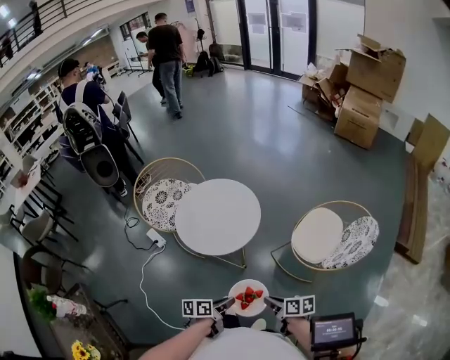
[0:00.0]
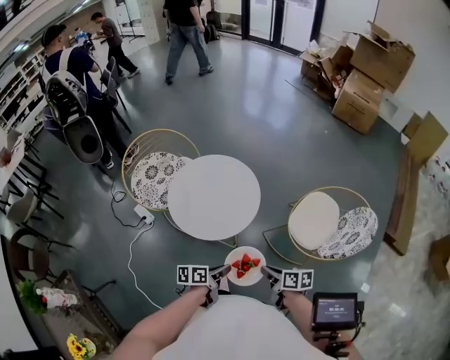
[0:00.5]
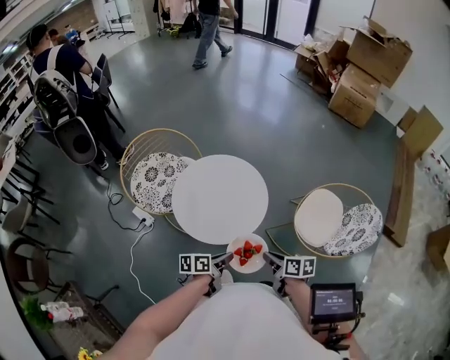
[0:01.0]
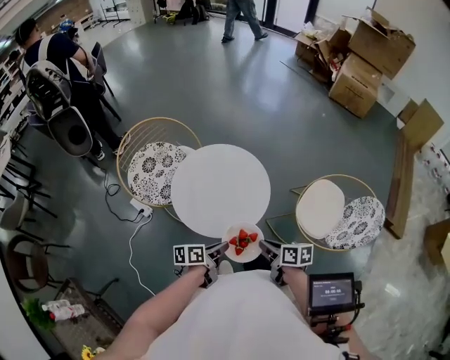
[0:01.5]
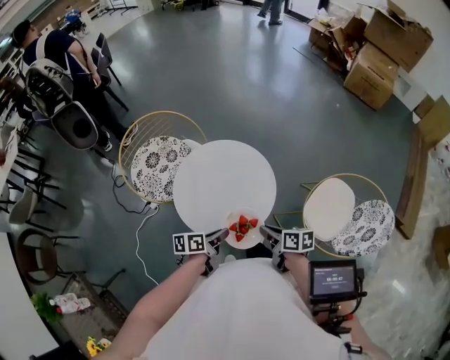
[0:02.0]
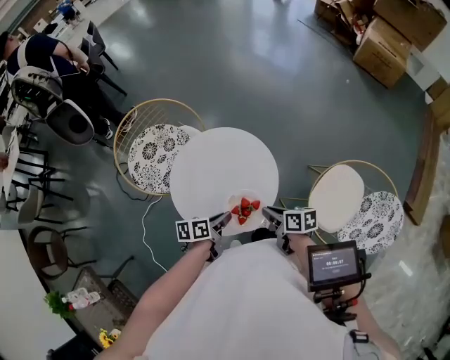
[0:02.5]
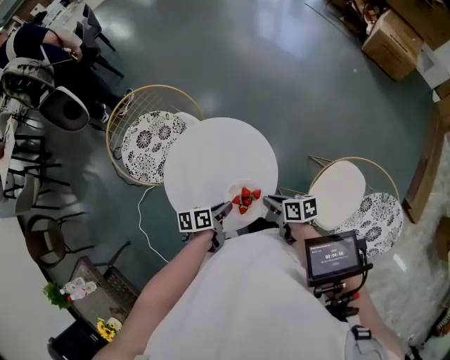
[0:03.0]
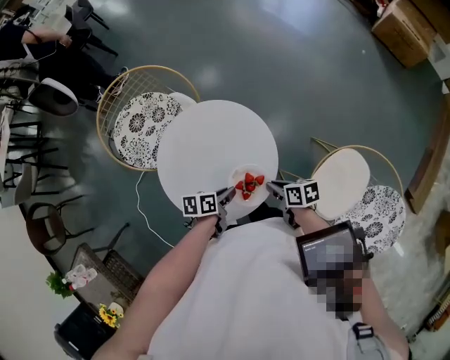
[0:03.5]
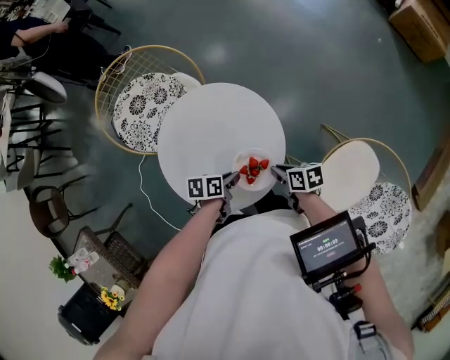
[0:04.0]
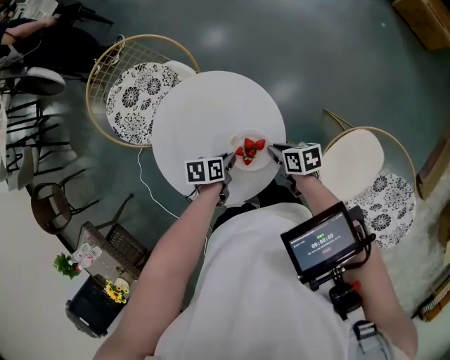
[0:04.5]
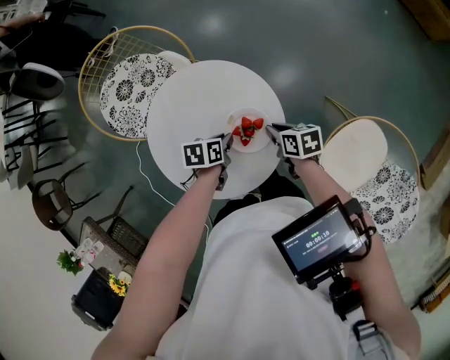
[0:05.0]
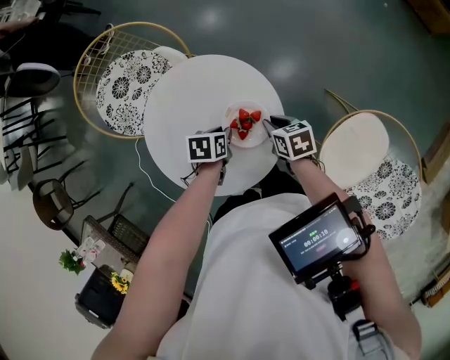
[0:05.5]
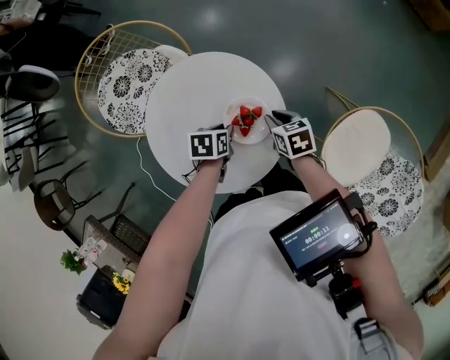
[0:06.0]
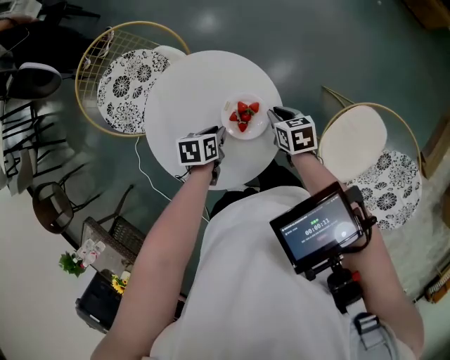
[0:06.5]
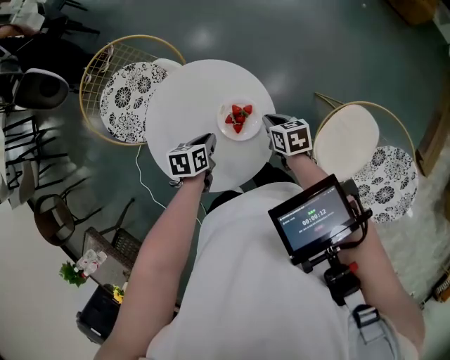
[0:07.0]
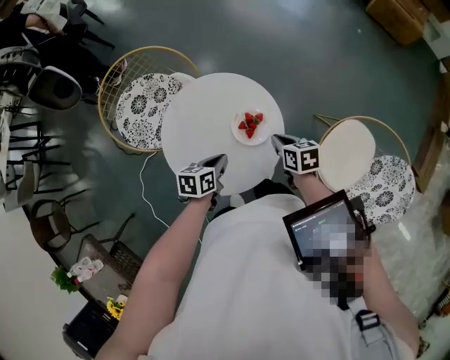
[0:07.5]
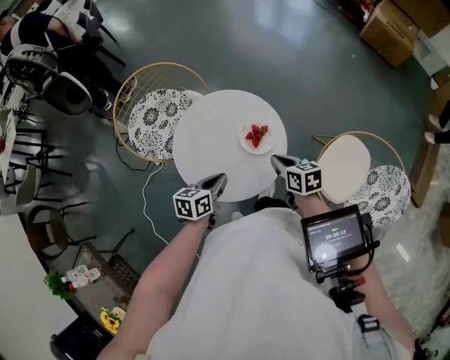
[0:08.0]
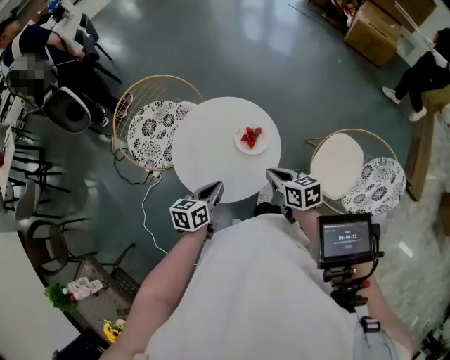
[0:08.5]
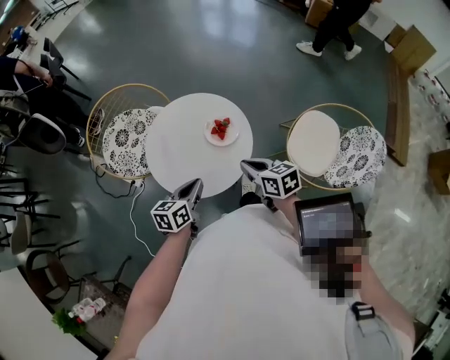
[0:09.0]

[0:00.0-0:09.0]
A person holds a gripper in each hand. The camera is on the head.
0:00.0 to 0:02.0: The grippers both shift forward and to the left by some 30 cm.
0:02.0 to 0:04.5: The right gripper changes place by roughly 25 cm, and changes its angle by approximately 20 degrees. Meanwhile the left gripper ends up approximately 25 cm from where it was, and swivels roughly 30 degrees.
0:04.5 to 0:07.0: The left gripper moves roughly 5 cm.
0:07.0 to 0:09.0: The two grippers go roughly 25 cm backward and upward. The left gripper turns by roughly 30 degrees.

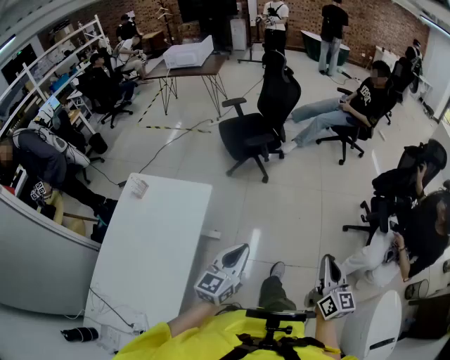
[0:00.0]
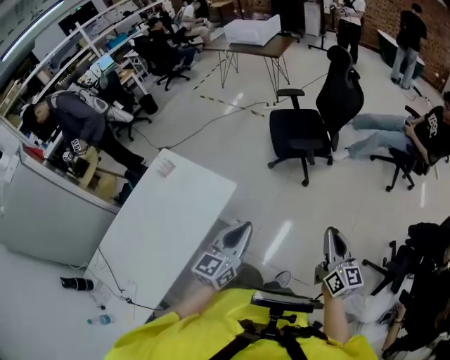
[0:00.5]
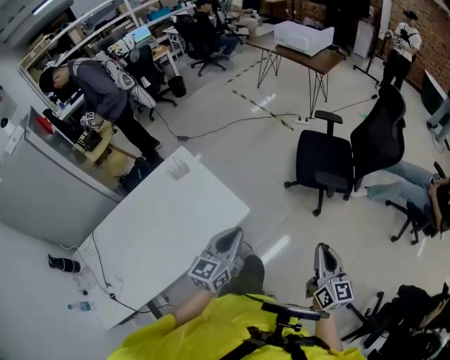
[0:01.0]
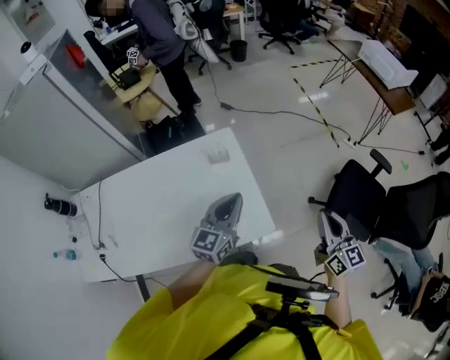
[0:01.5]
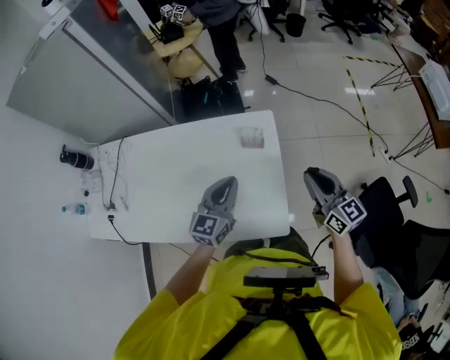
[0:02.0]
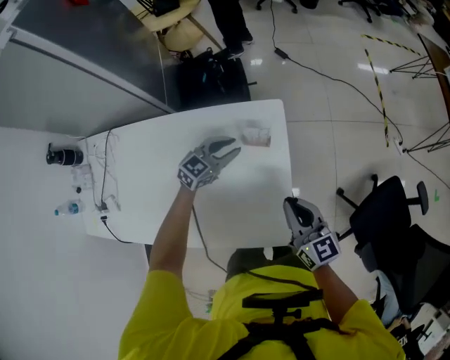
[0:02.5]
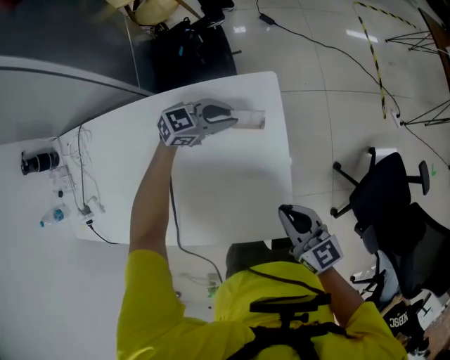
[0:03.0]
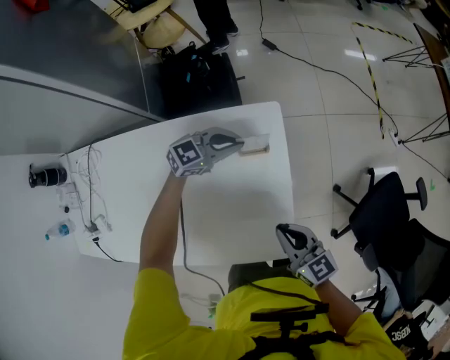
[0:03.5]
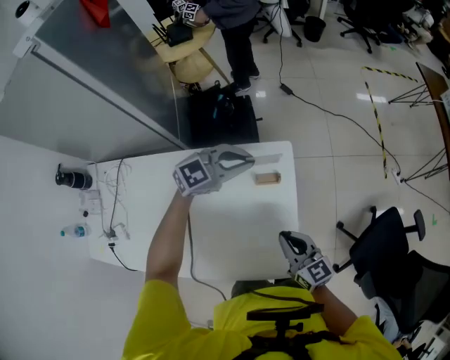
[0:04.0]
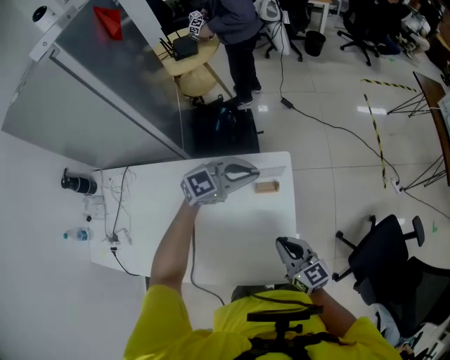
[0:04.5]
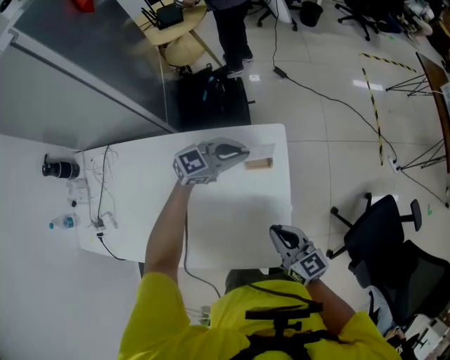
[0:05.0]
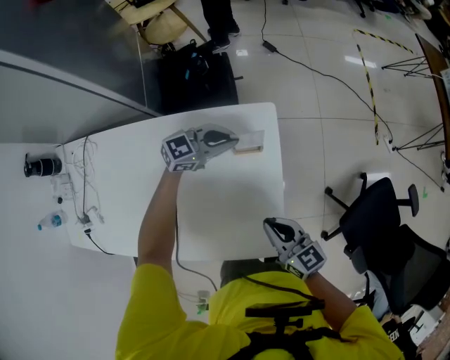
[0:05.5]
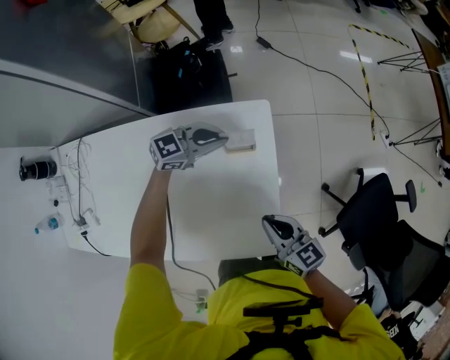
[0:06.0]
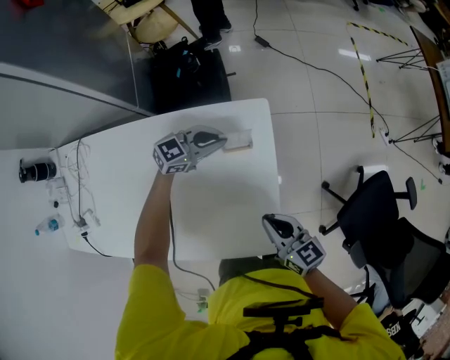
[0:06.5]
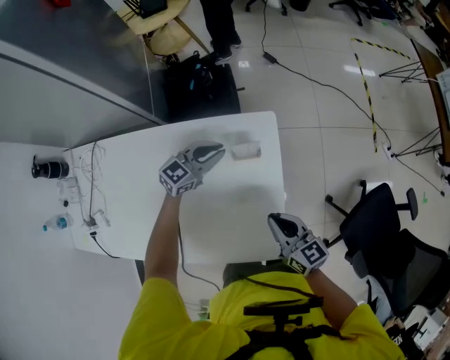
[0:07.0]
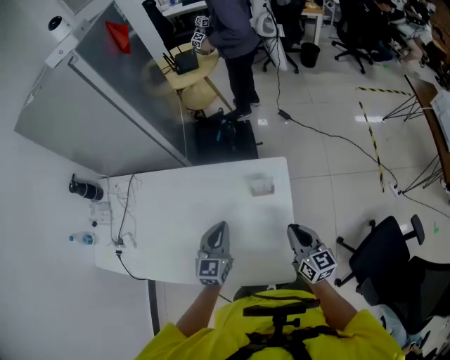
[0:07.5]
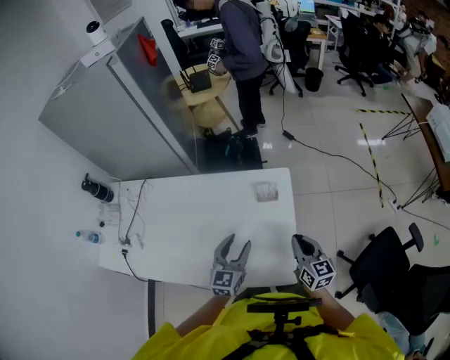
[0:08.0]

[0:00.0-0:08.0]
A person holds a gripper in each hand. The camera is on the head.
0:00.0 to 0:02.0: The pair of grippers is taken some 70 cm. The right gripper changes its angle by some 100 degrees. The left gripper rotates roughly 80 degrees.
0:02.0 to 0:04.0: The right gripper shifts by approximately 15 cm, while the left gripper goes downward and returns, about 20 cm each way, rotates some 50 degrees, and opens, then closes once more.
0:04.0 to 0:06.0: The left gripper moves downward, about 15 cm; the right gripper moves downward, roughly 5 cm.
0:06.0 to 0:08.0: The left gripper moves roughly 30 cm, rotates about 60 degrees, and opens up; the right gripper travels upward by roughly 10 cm, and changes its angle by some 20 degrees.

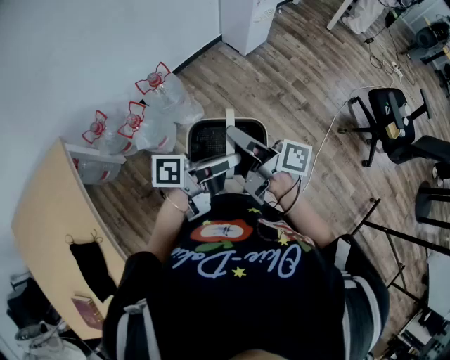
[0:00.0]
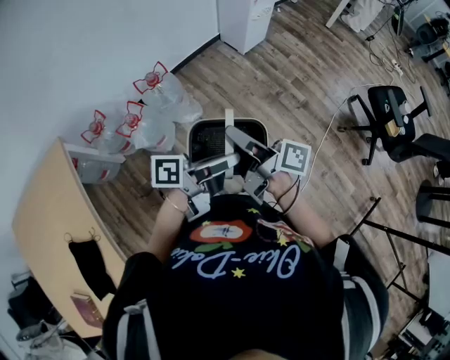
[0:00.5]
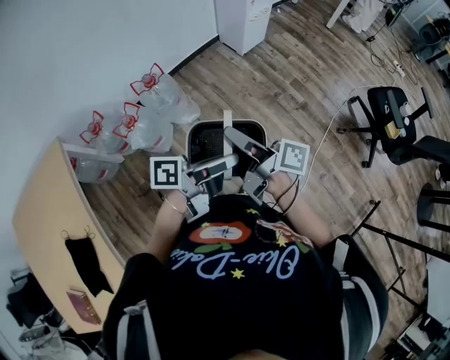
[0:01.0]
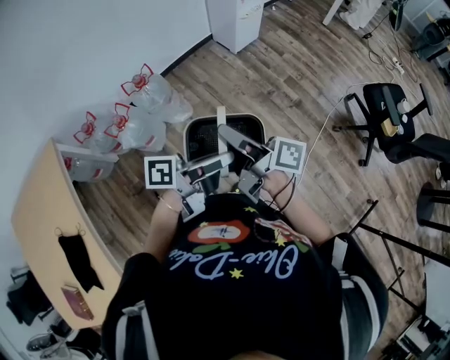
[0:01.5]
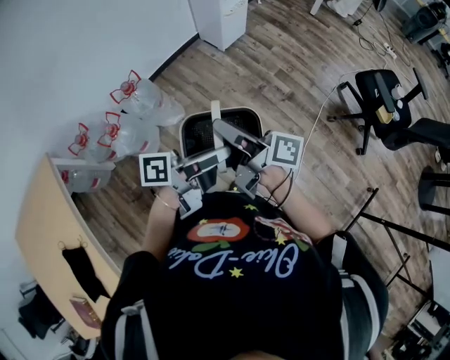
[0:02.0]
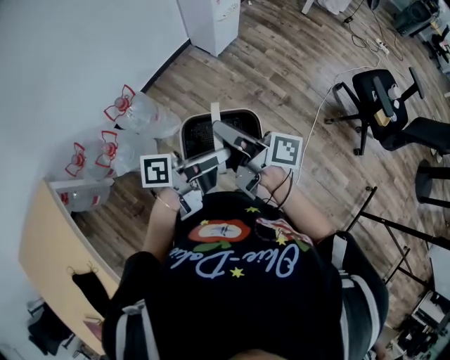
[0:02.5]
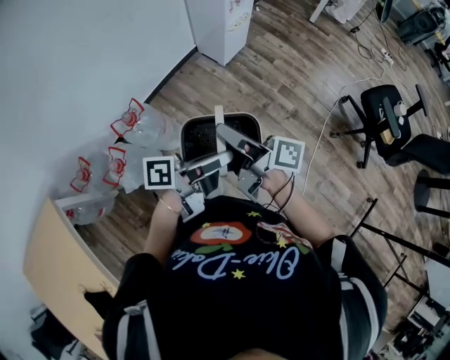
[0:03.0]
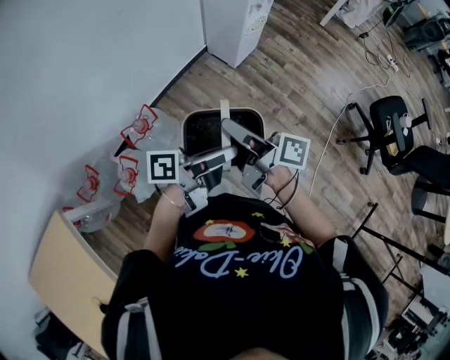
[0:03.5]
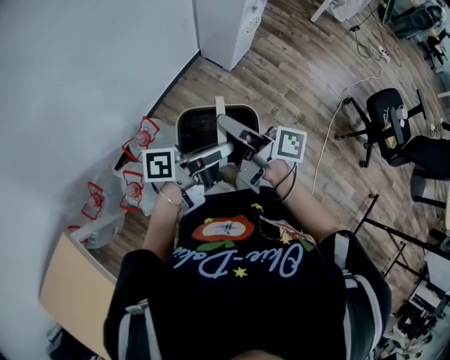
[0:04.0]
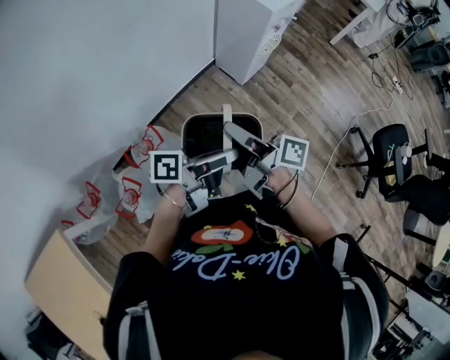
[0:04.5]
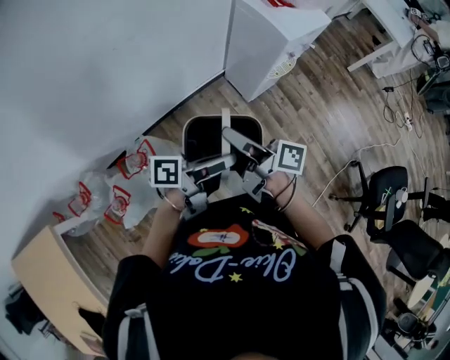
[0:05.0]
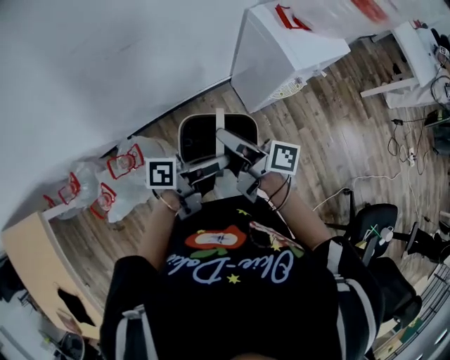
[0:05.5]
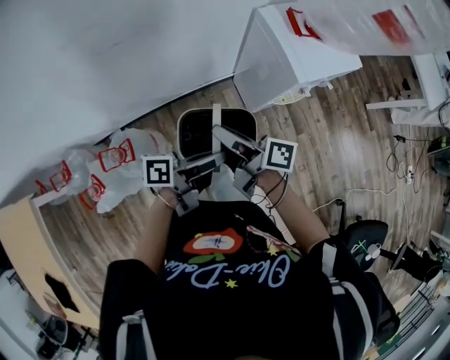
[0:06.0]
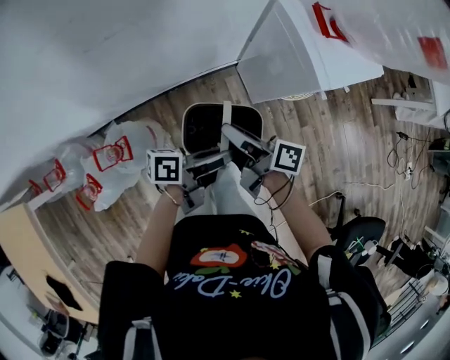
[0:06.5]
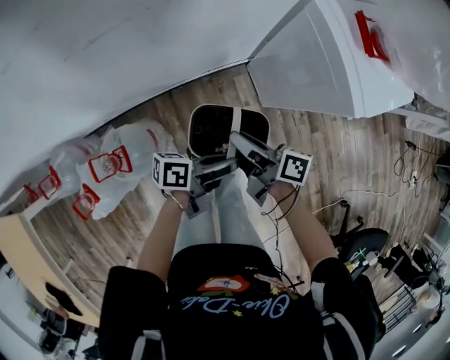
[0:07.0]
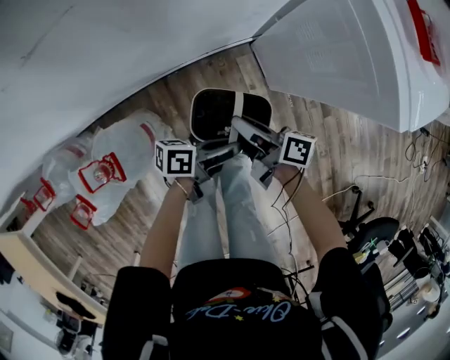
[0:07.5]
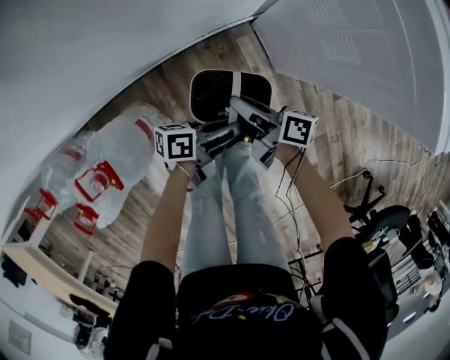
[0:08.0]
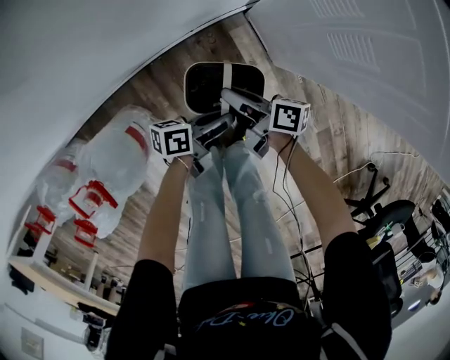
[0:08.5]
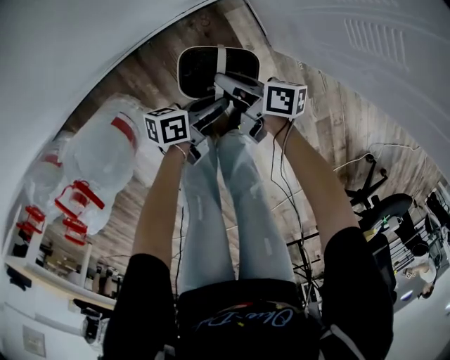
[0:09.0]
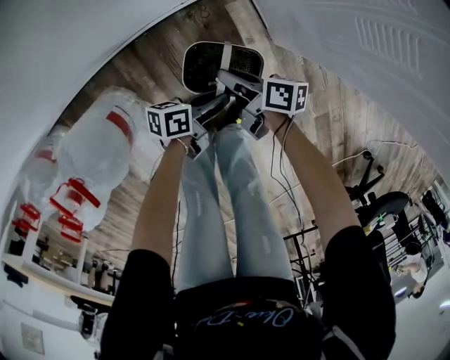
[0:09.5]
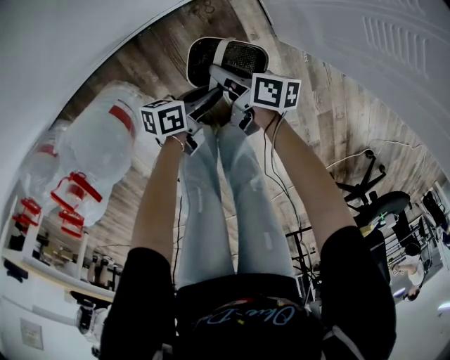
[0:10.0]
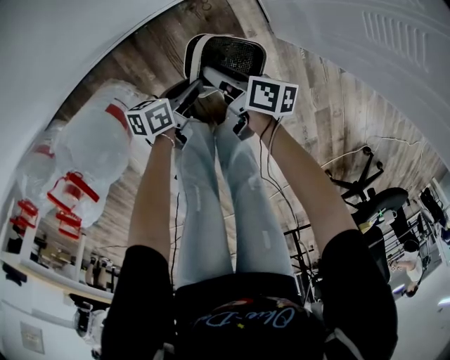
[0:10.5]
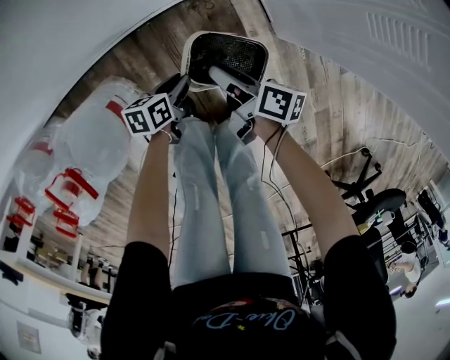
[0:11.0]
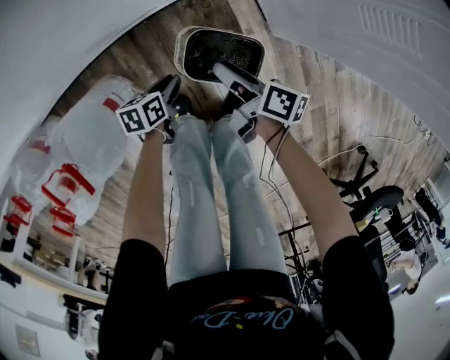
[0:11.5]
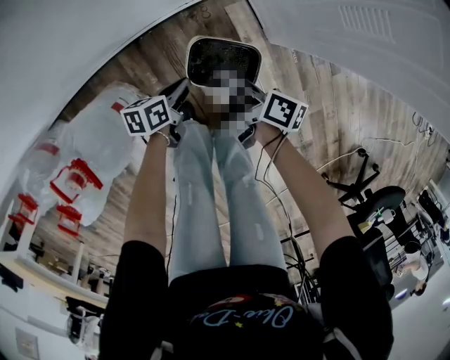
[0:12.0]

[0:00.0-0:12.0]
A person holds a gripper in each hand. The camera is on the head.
0:00.0 to 0:02.0: The right gripper changes place by roughly 10 cm.
0:02.0 to 0:04.0: The right gripper ends up approximately 35 cm from where it was.
0:04.0 to 0:06.0: The right gripper moves roughly 35 cm, and rotates roughly 30 degrees.
0:06.0 to 0:08.0: The right gripper travels downward by some 35 cm.
0:08.0 to 0:10.0: The right gripper shifts about 15 cm downward.
0:10.0 to 0:12.0: The right gripper goes approximately 10 cm upward.
